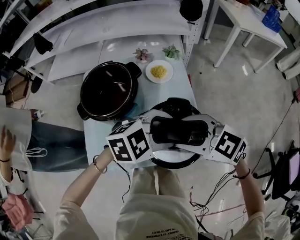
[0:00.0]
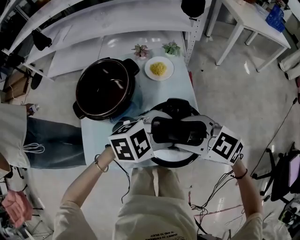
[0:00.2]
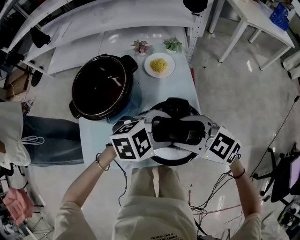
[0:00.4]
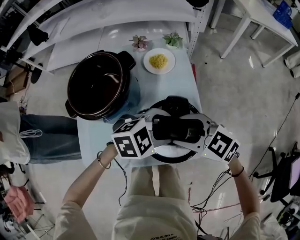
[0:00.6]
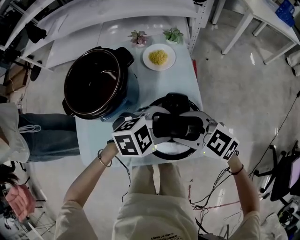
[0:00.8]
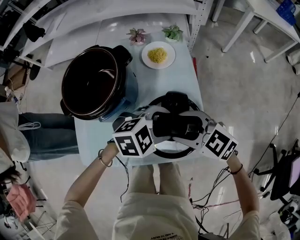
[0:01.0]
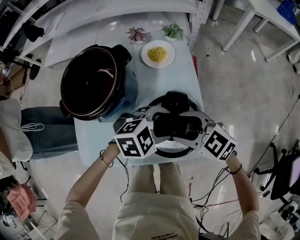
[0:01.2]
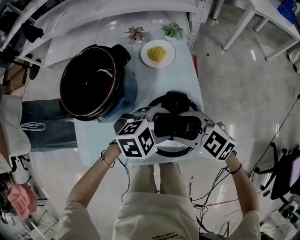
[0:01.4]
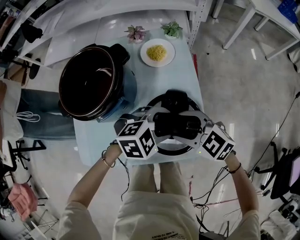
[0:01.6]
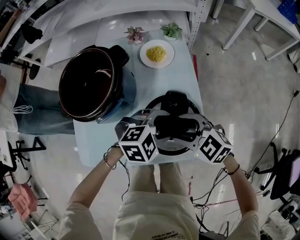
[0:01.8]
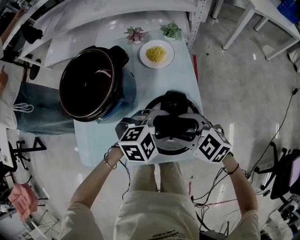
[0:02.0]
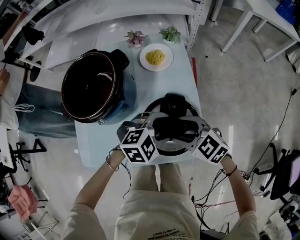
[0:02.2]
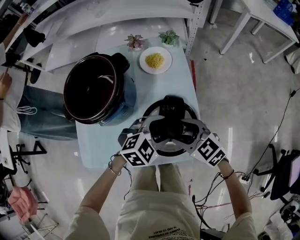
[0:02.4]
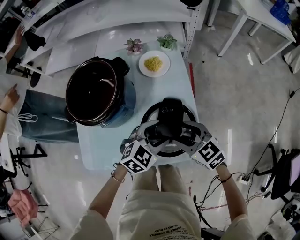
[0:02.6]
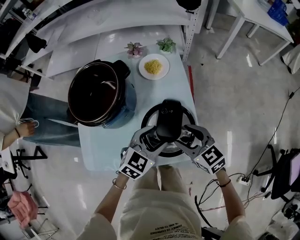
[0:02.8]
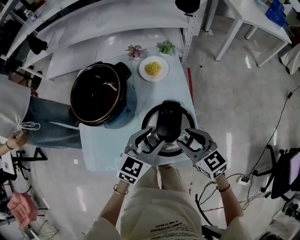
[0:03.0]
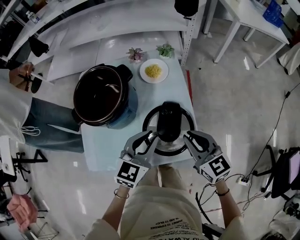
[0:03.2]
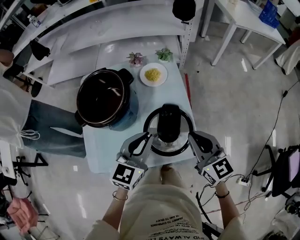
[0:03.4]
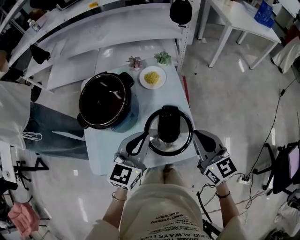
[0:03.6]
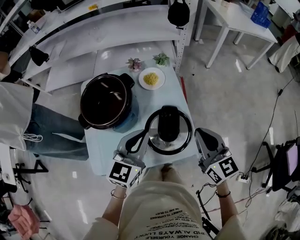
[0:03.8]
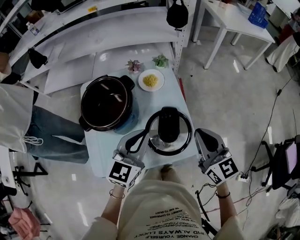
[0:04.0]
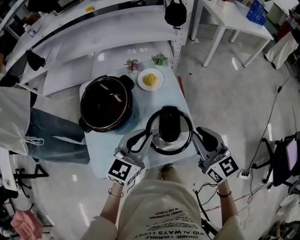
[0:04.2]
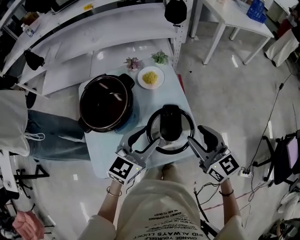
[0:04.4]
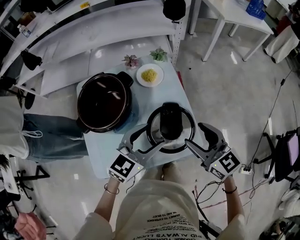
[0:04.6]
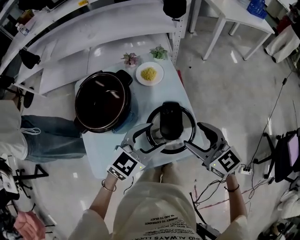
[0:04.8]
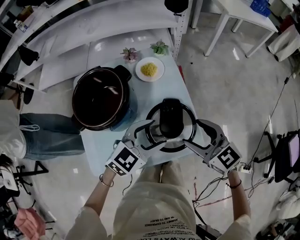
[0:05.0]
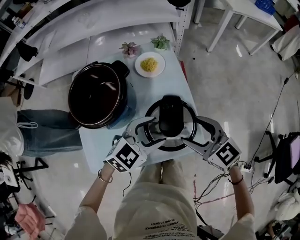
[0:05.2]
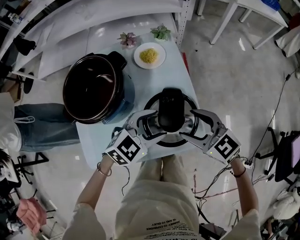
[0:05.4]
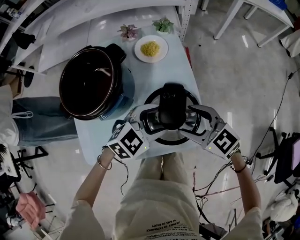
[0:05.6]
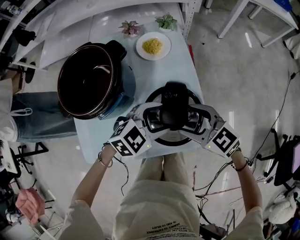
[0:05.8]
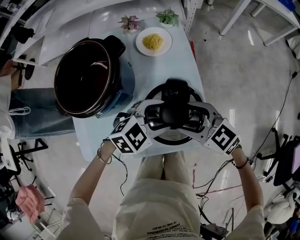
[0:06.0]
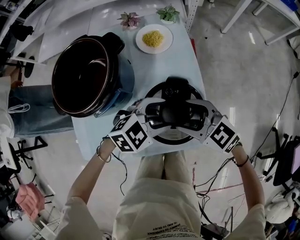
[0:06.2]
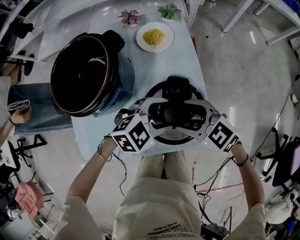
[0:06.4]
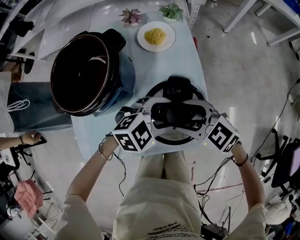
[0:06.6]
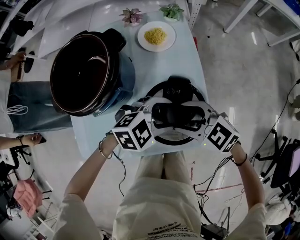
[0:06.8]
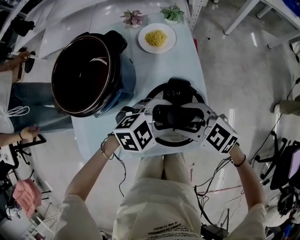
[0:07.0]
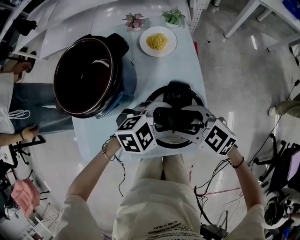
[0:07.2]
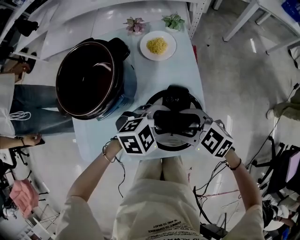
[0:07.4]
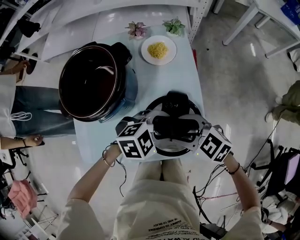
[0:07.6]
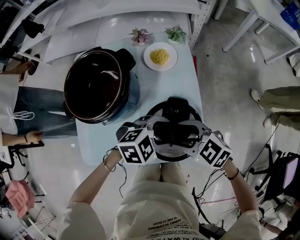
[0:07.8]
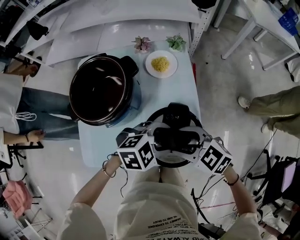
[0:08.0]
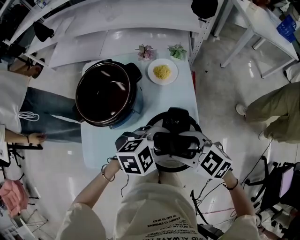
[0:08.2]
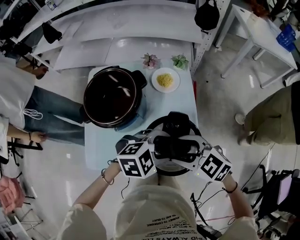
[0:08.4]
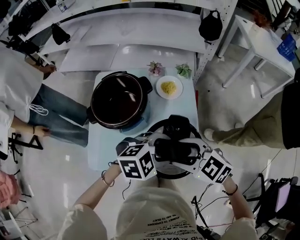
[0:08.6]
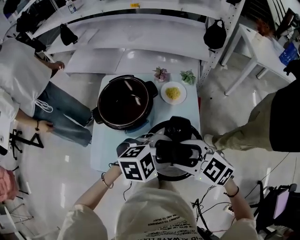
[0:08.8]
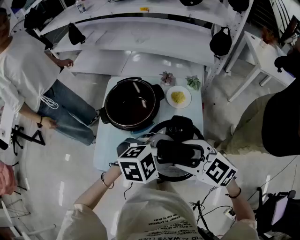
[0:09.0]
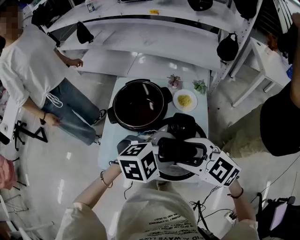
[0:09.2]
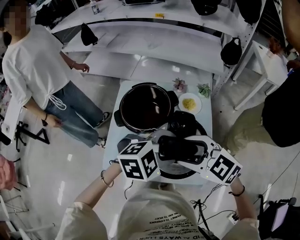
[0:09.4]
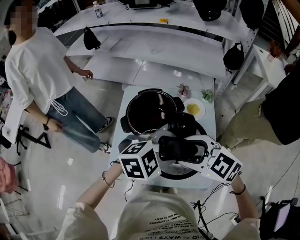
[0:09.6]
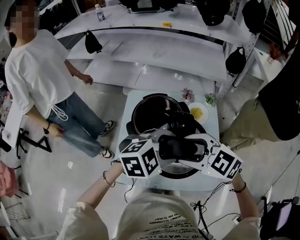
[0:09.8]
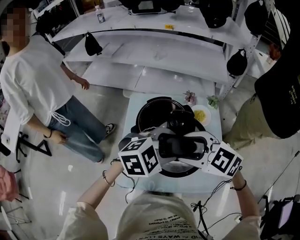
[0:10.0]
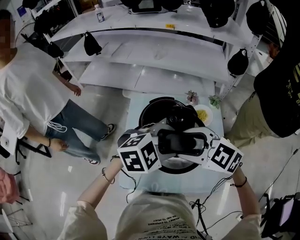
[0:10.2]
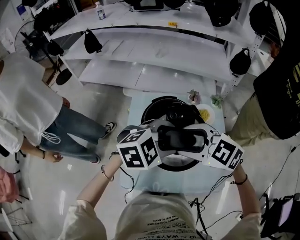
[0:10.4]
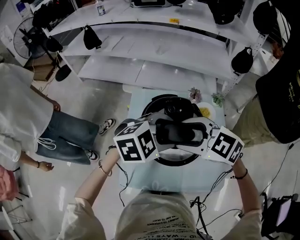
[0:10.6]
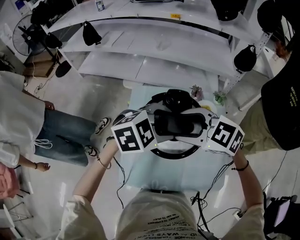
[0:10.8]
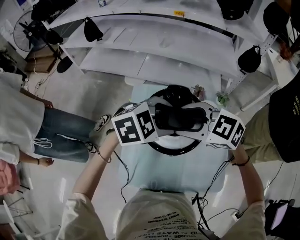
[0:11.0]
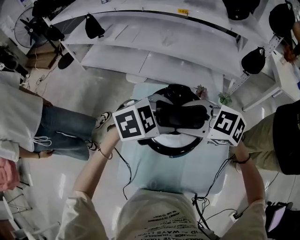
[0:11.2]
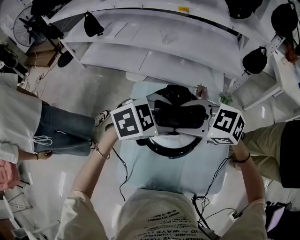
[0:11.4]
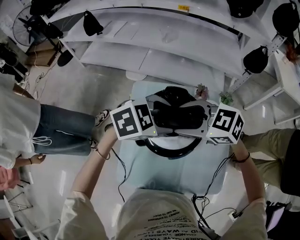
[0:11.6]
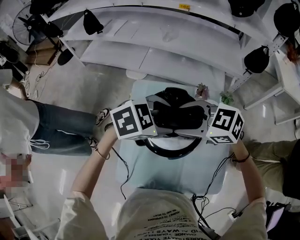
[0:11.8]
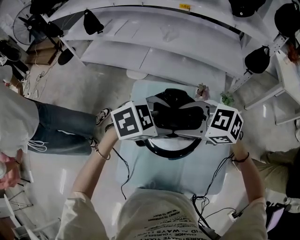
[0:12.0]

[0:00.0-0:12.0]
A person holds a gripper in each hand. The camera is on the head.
0:00.0 to 0:01.6: The grippers both shift downward by approximately 15 cm.
0:01.6 to 0:03.0: The right gripper changes place by about 5 cm, and swivels roughly 30 degrees. The left gripper travels upward by approximately 5 cm, and turns by approximately 50 degrees.
0:03.0 to 0:04.4: Both grippers move upward, some 10 cm. The left gripper closes, then reopens; the right gripper rotates about 20 degrees, and closes and opens again.
0:04.4 to 0:06.0: Both grippers move downward, about 15 cm. The right gripper rotates about 40 degrees, and opens up. Meanwhile the left gripper changes its angle by about 40 degrees, and opens.
0:06.0 to 0:07.6: There are only small adjustments of the grippers.
0:07.6 to 0:09.0: Both grippers move upward, some 15 cm.
0:09.0 to 0:10.4: The left gripper ends up some 20 cm from where it was. The right gripper shifts by about 20 cm.
0:10.4 to 0:12.0: The right gripper changes place by some 10 cm, while the left gripper moves about 10 cm.

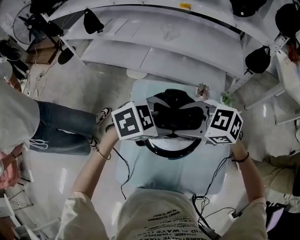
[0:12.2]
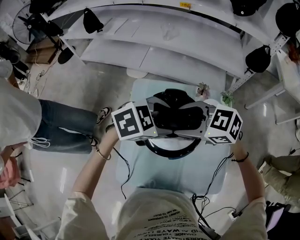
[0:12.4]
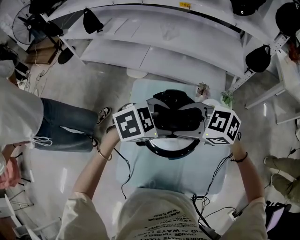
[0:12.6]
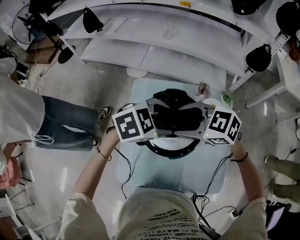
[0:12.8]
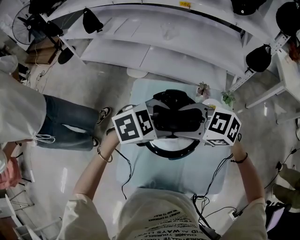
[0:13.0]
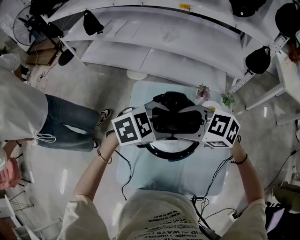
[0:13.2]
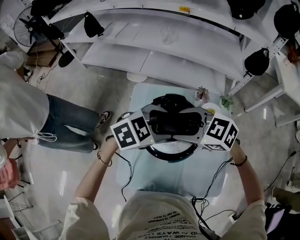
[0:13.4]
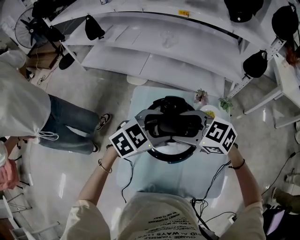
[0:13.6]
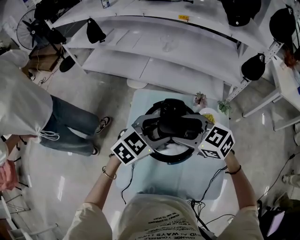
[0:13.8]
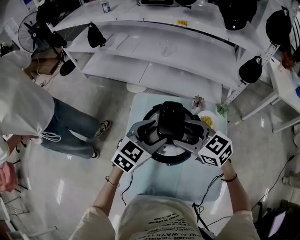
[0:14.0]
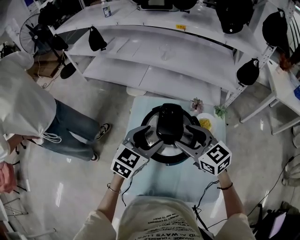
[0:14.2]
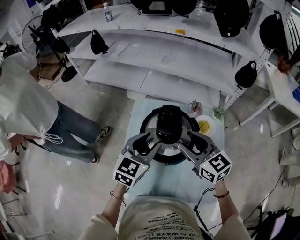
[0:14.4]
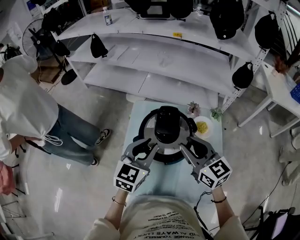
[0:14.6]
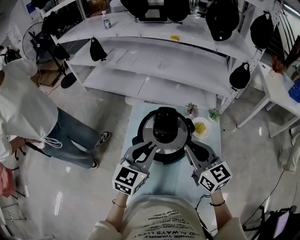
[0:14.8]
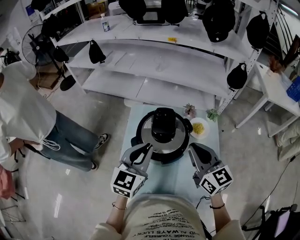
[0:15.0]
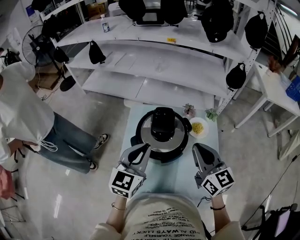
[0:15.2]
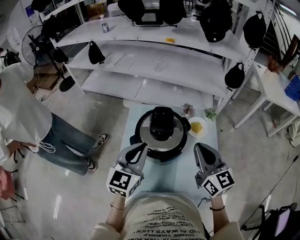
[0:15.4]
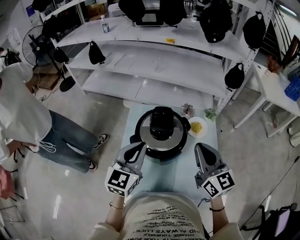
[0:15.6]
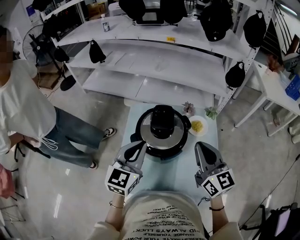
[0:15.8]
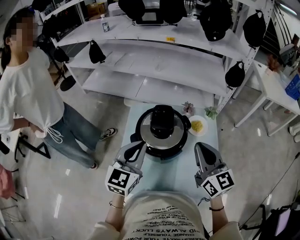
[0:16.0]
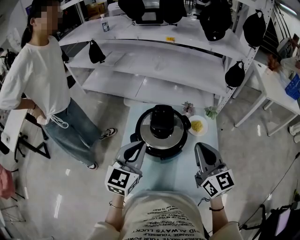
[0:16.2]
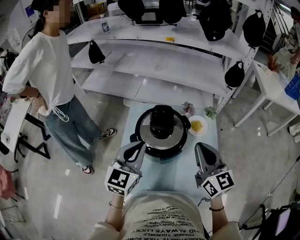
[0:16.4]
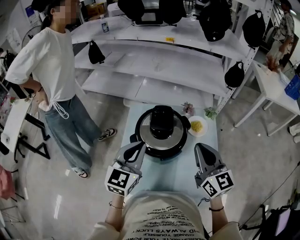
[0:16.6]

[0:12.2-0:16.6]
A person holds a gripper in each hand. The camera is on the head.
0:12.2 to 0:13.6: The grippers make only small movements.
0:13.6 to 0:15.2: The left gripper moves roughly 10 cm, turns by some 40 degrees, and closes up; the right gripper moves some 15 cm, changes its angle by approximately 50 degrees, and closes its fingers.
0:15.2 to 0:16.6: The grippers make only small movements.

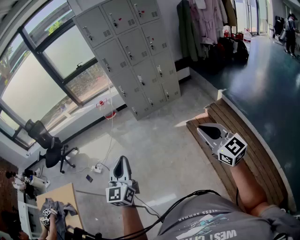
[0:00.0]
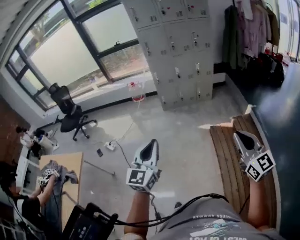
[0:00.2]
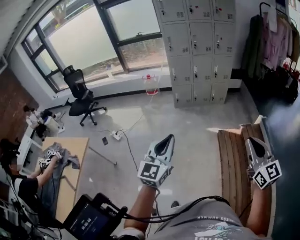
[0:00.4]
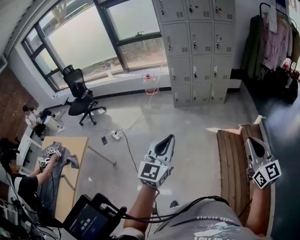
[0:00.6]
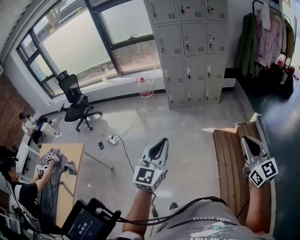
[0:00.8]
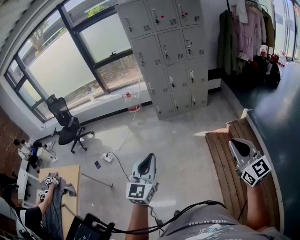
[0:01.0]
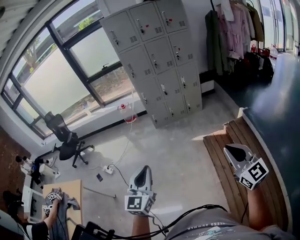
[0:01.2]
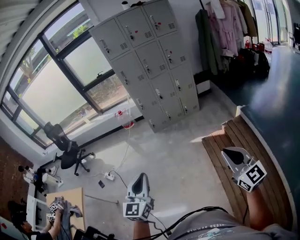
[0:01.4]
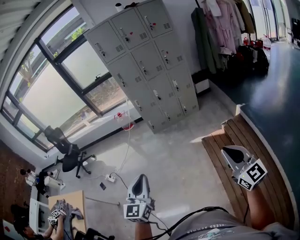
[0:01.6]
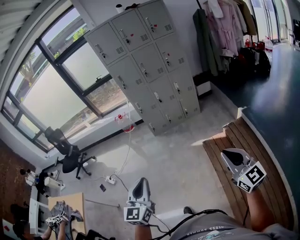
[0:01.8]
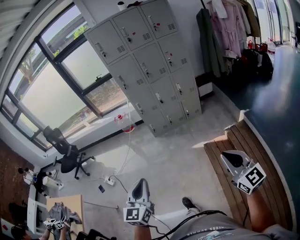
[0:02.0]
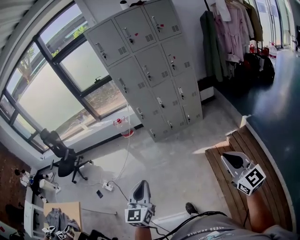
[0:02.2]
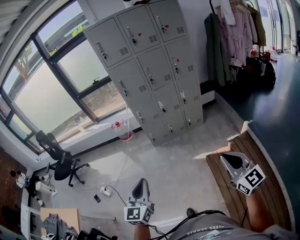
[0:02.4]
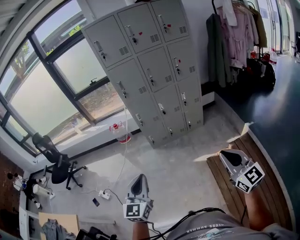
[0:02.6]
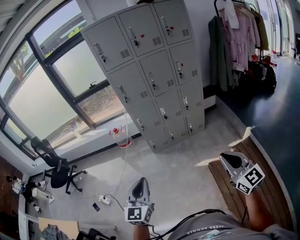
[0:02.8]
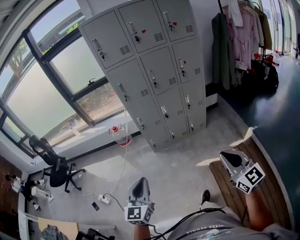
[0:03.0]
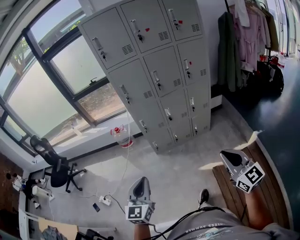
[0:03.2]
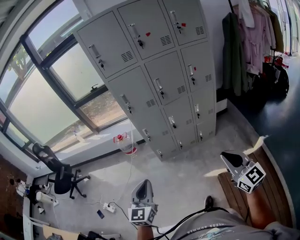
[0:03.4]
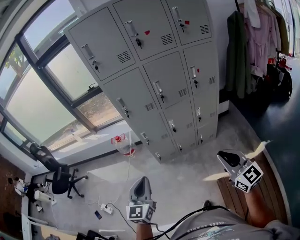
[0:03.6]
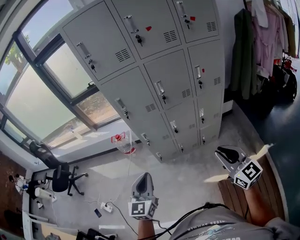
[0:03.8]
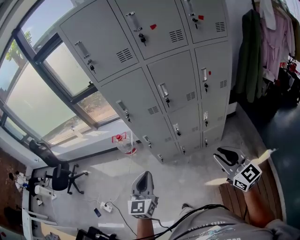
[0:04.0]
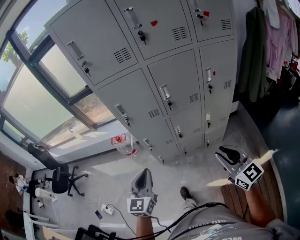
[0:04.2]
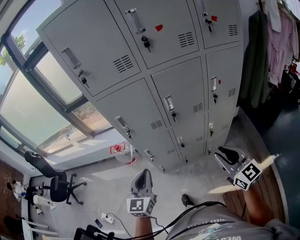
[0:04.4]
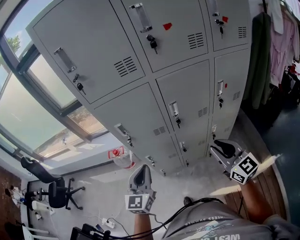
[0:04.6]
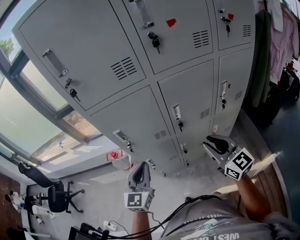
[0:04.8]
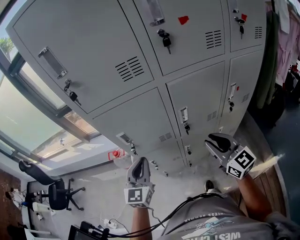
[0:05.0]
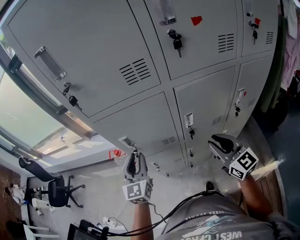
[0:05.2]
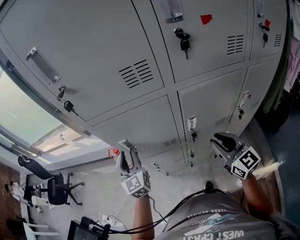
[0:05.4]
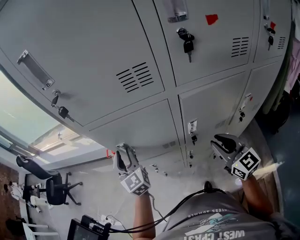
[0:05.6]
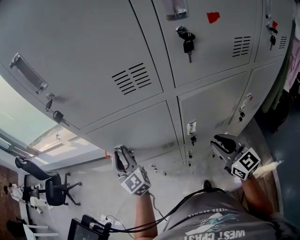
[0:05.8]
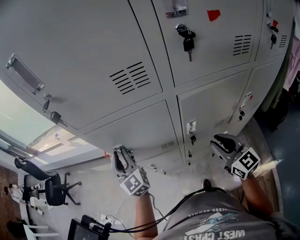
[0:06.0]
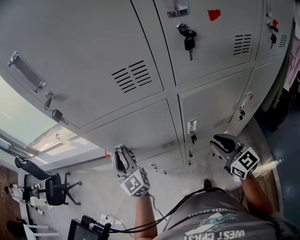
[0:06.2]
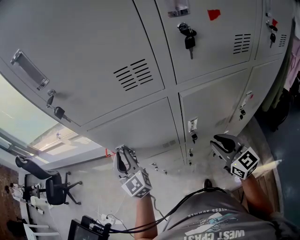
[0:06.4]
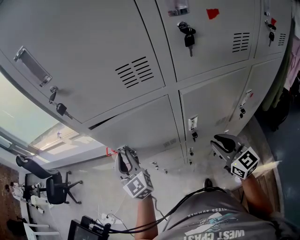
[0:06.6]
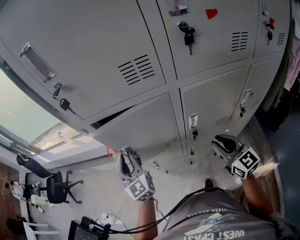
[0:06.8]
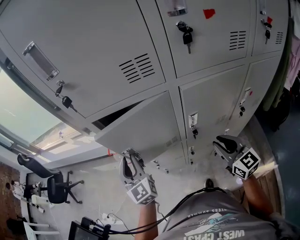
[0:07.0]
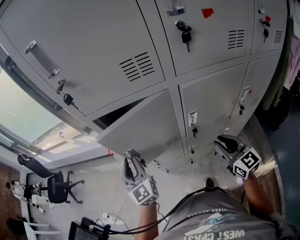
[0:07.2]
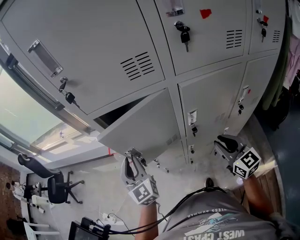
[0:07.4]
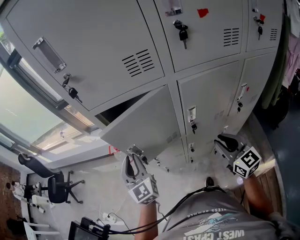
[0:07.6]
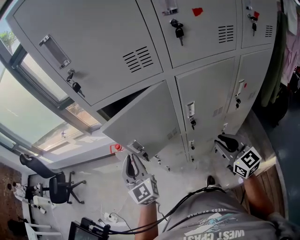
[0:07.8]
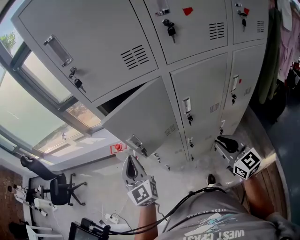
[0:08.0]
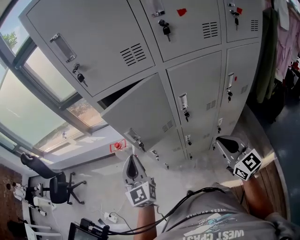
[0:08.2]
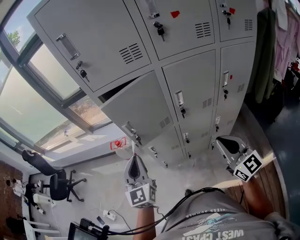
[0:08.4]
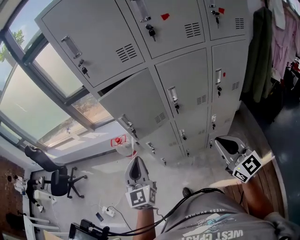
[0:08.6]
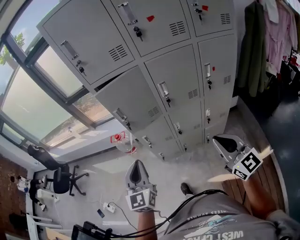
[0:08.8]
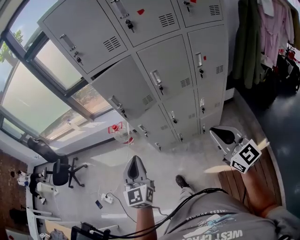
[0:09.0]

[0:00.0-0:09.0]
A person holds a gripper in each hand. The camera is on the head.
0:00.0 to 0:01.6: The grippers both shift to the right by roughly 15 cm.
0:01.6 to 0:03.0: The two grippers go about 40 cm forward.
0:03.0 to 0:04.4: The two grippers travel together, forward, approximately 50 cm. The right gripper opens.
0:04.4 to 0:06.0: The two grippers go about 30 cm forward. The left gripper rotates about 30 degrees, and opens.
0:06.0 to 0:07.6: The left gripper is displaced backward by some 10 cm. Meanwhile the right gripper shifts approximately 5 cm backward.
0:07.6 to 0:09.0: Both grippers travel together backward, about 35 cm. The left gripper closes.
